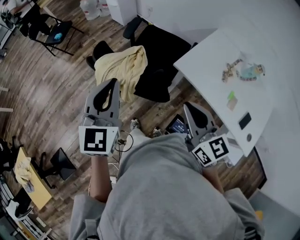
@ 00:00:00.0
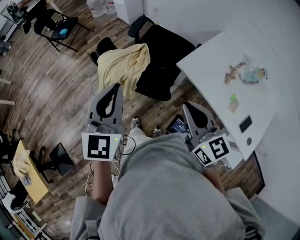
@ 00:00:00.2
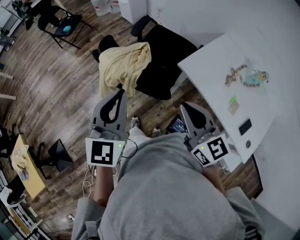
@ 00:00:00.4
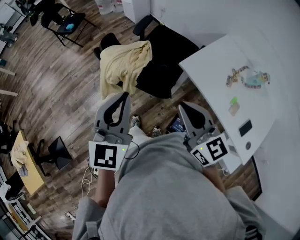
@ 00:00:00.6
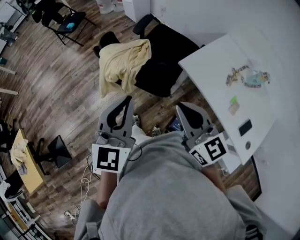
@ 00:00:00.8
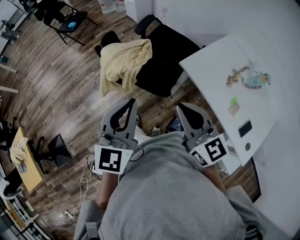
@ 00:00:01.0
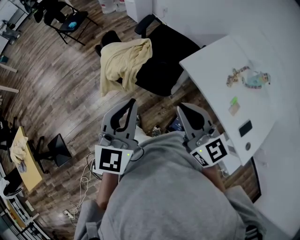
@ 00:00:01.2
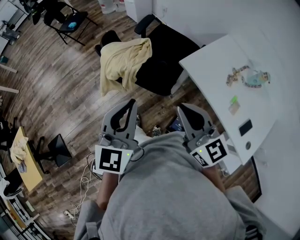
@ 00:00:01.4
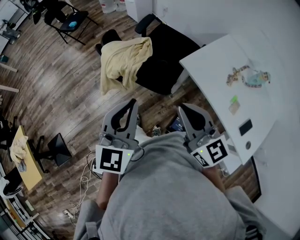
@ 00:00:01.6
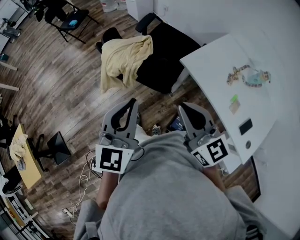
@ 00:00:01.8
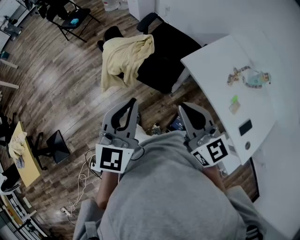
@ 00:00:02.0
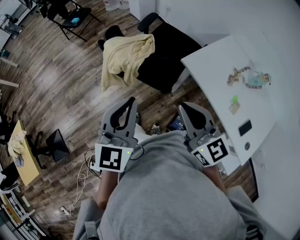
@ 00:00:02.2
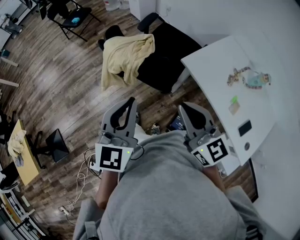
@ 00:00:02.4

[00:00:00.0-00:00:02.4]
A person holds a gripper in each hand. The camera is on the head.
00:00:00.0 to 00:00:01.2: The left gripper moves backward, roughly 10 cm.
00:00:01.2 to 00:00:02.4: The grippers stay close to where they were, moving slightly.

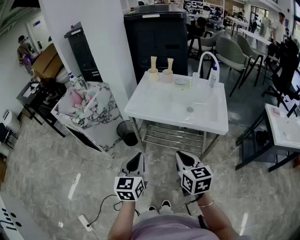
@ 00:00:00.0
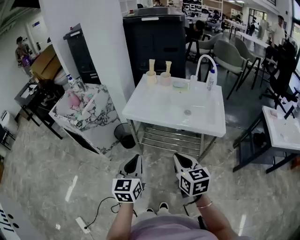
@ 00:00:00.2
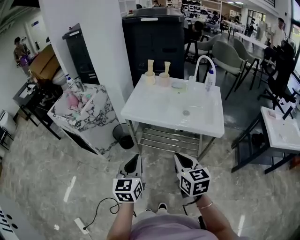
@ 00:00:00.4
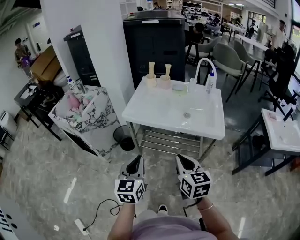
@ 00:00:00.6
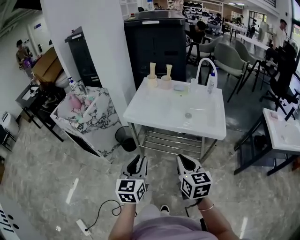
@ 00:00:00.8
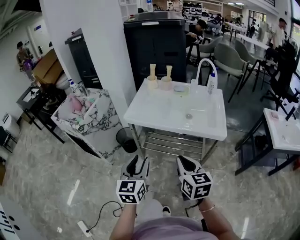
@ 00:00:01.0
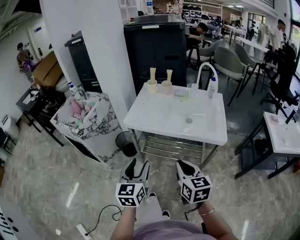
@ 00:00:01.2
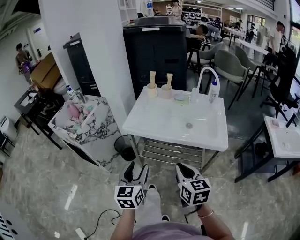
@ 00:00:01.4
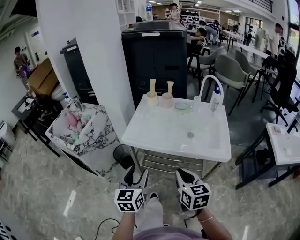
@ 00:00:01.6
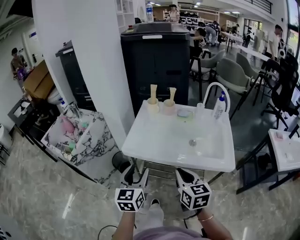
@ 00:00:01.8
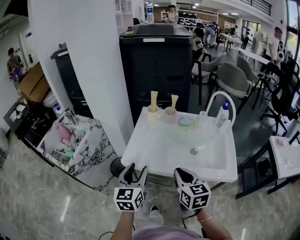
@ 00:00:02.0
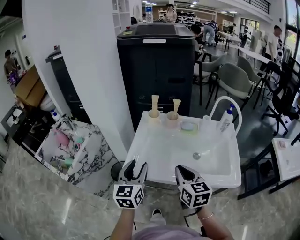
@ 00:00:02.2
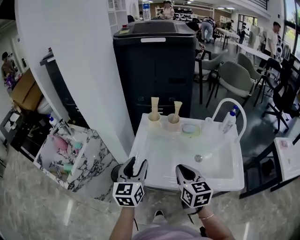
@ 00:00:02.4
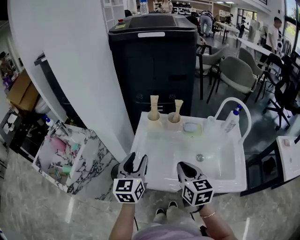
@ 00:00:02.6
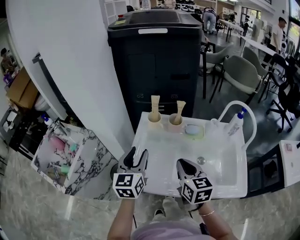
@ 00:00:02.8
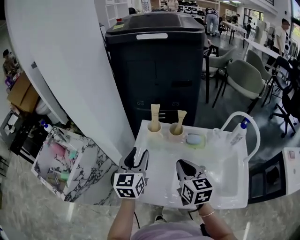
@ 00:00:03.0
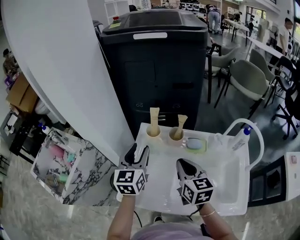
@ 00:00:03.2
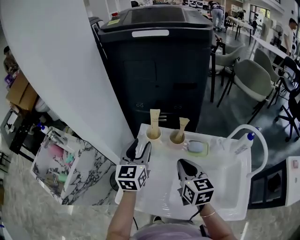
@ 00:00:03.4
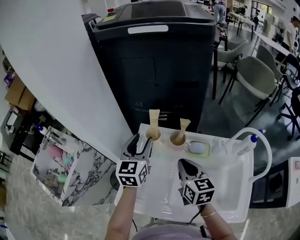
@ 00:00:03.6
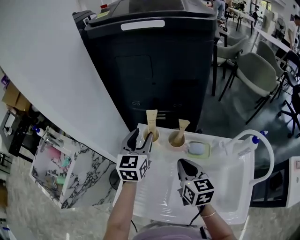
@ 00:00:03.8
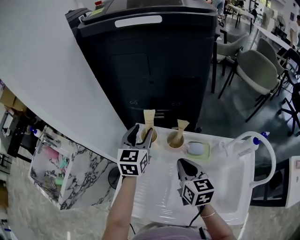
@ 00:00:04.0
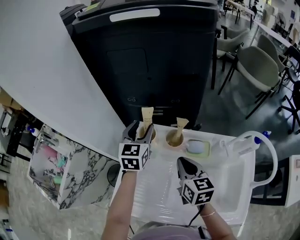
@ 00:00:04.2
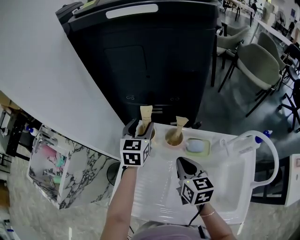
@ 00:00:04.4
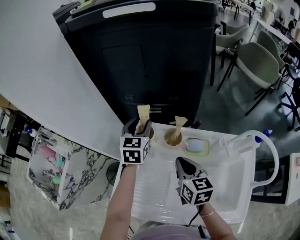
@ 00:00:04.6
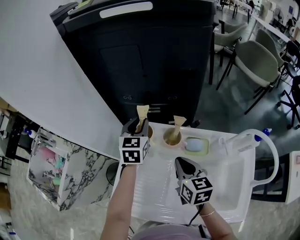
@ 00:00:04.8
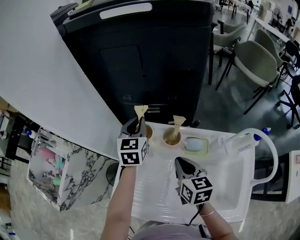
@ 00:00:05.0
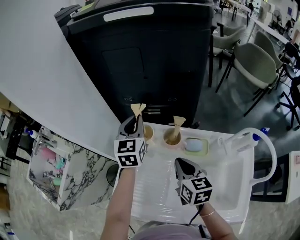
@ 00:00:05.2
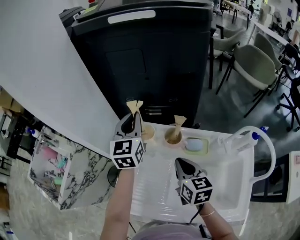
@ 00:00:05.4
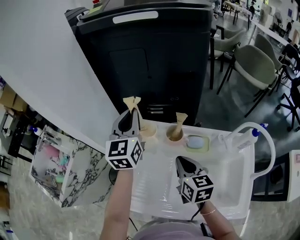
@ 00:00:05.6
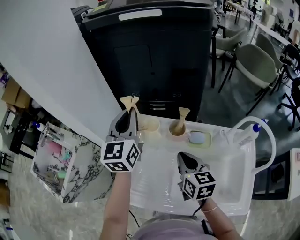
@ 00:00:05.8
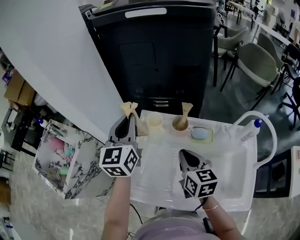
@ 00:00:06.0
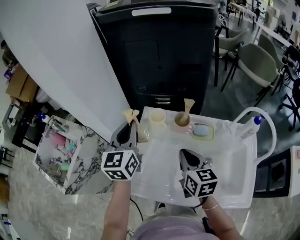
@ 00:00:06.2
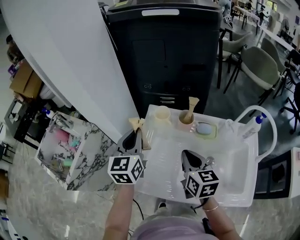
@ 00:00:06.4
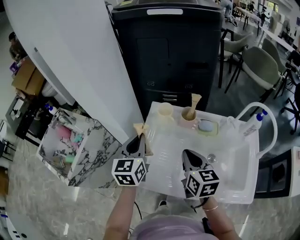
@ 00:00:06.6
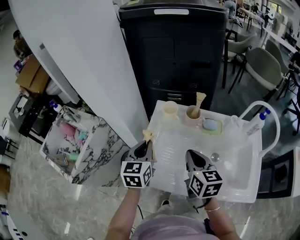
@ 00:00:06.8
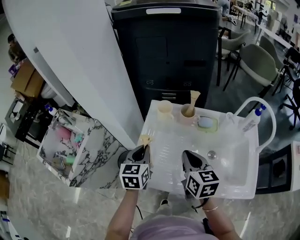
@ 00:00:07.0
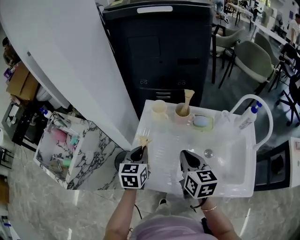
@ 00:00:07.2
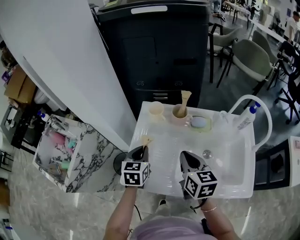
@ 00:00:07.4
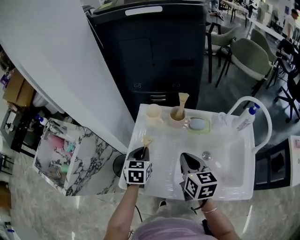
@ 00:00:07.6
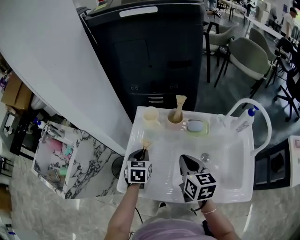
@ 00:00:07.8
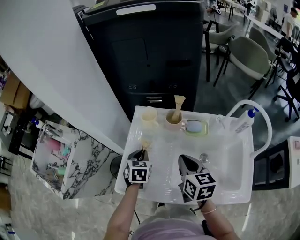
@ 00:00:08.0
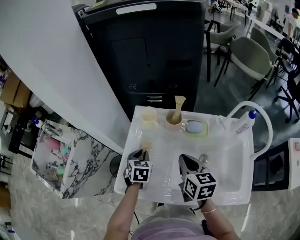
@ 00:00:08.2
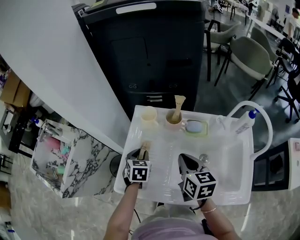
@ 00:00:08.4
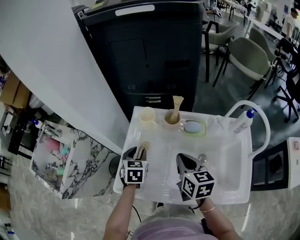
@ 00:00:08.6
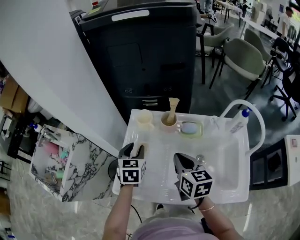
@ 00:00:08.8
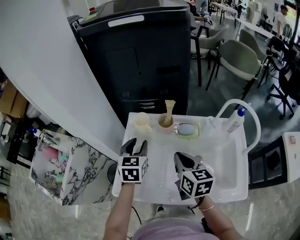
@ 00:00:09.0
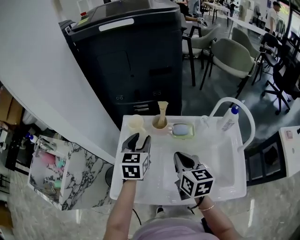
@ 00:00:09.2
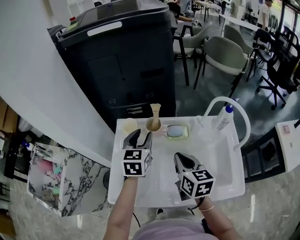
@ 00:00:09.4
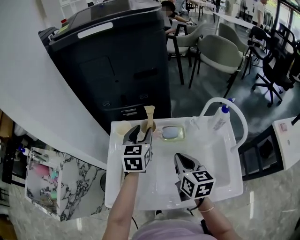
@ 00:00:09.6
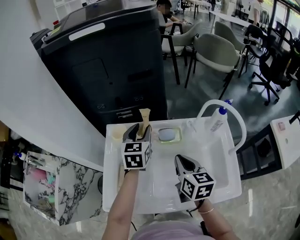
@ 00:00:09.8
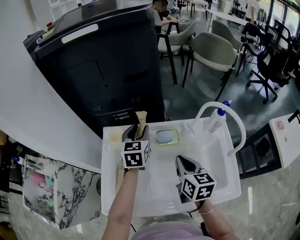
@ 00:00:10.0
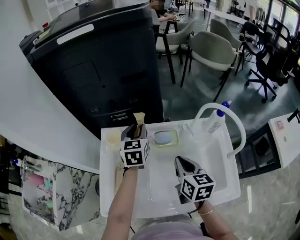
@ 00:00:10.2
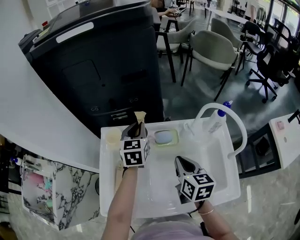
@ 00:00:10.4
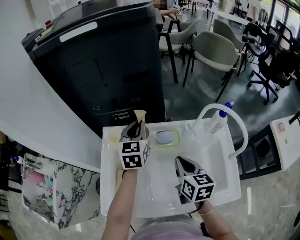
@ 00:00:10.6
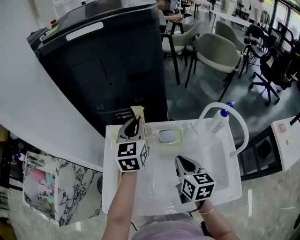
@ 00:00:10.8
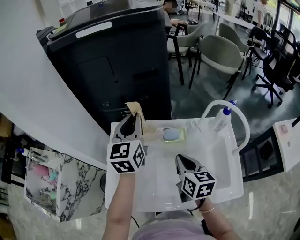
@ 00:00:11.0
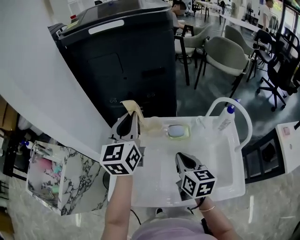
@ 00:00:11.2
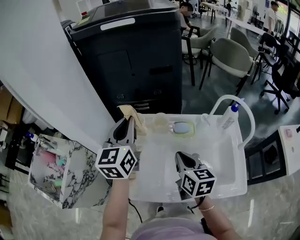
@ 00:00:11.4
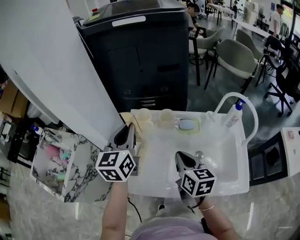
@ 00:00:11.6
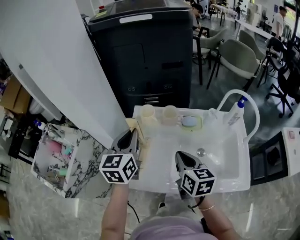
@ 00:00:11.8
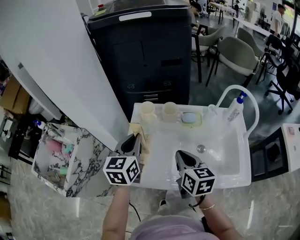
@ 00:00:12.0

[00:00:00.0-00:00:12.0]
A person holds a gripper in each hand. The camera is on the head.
00:00:00.0 to 00:00:01.6: Both grippers travel together forward, roughly 10 cm. The left gripper opens.
00:00:01.6 to 00:00:03.0: Both grippers move forward, about 40 cm.
00:00:03.0 to 00:00:04.4: The left gripper shifts some 20 cm forward; the right gripper travels forward and downward by some 15 cm.
00:00:04.4 to 00:00:06.0: The right gripper changes place by about 5 cm, while the left gripper goes some 20 cm upward, backward and to the left, rotates some 20 degrees, and closes up.
00:00:06.0 to 00:00:07.6: The left gripper is displaced downward and backward by some 25 cm, and tips its fingers downward by approximately 40 degrees. Meanwhile the right gripper travels backward by roughly 5 cm.
00:00:07.6 to 00:00:09.0: The left gripper moves upward, about 10 cm, and opens up.
00:00:09.0 to 00:00:10.4: The left gripper shifts roughly 20 cm forward and to the right, and closes up. The right gripper is displaced to the right by approximately 10 cm.
00:00:10.4 to 00:00:12.0: The left gripper shifts approximately 25 cm backward and to the left; the right gripper moves to the left and backward, approximately 15 cm.

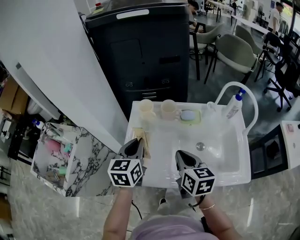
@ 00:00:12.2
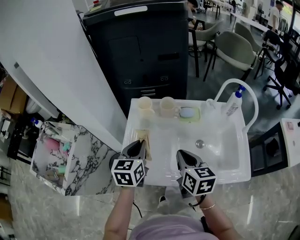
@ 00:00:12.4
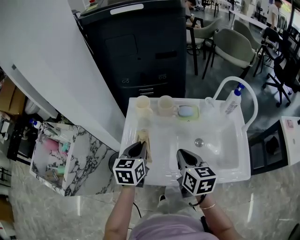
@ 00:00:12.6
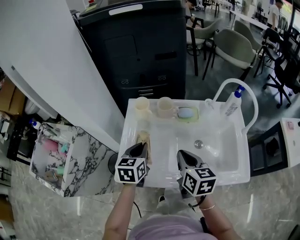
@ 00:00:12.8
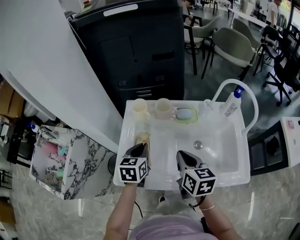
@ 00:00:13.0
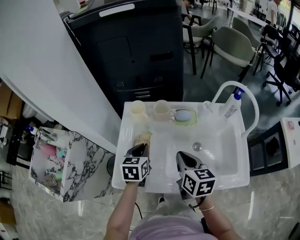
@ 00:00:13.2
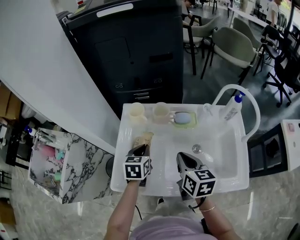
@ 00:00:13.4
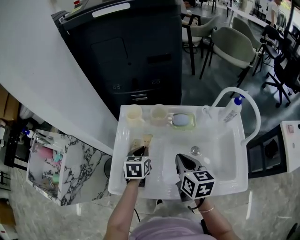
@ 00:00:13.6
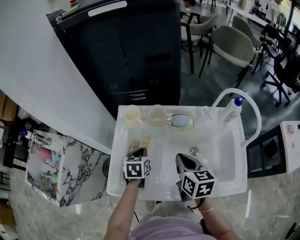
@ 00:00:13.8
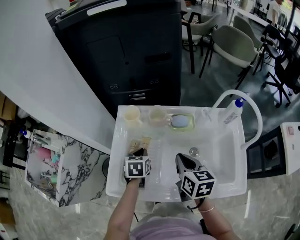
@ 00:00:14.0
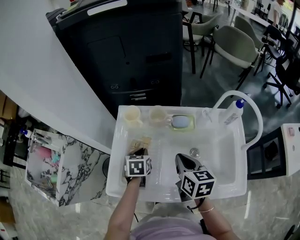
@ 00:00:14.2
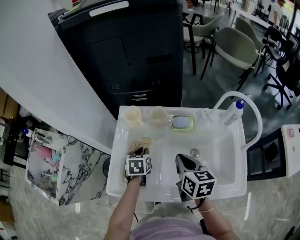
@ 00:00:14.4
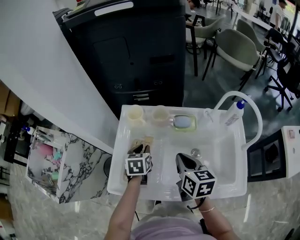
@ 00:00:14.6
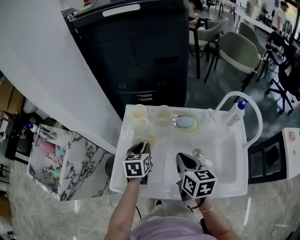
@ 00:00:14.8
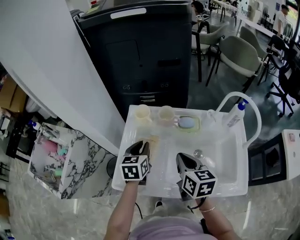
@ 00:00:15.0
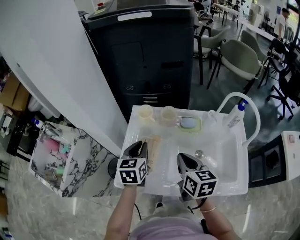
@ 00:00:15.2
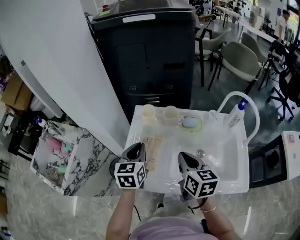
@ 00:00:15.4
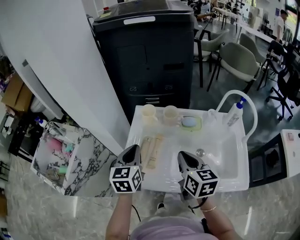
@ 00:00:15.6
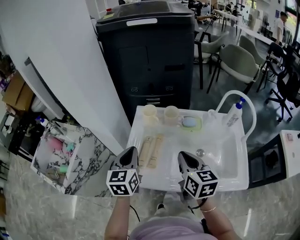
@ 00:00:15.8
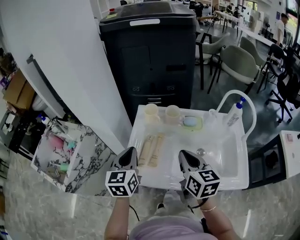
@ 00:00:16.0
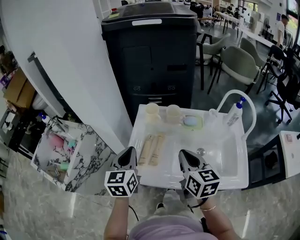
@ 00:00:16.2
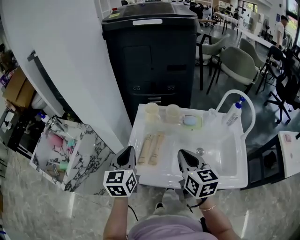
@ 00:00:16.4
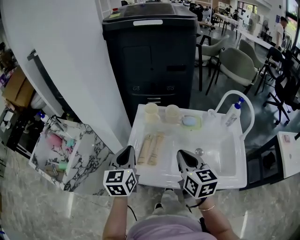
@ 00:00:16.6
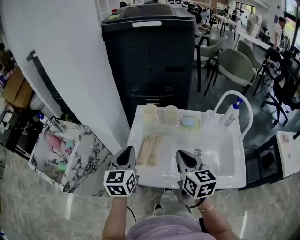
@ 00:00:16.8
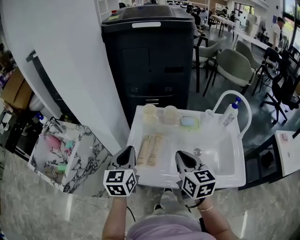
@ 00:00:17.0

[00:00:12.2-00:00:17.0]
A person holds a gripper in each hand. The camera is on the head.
00:00:12.2 to 00:00:13.8: The left gripper heads downward, covering some 15 cm, and rotates approximately 30 degrees; the right gripper heads forward and to the right, covering approximately 10 cm.
00:00:13.8 to 00:00:15.4: The left gripper shifts about 15 cm upward and to the left, and swivels roughly 20 degrees, while the right gripper goes roughly 5 cm upward.
00:00:15.4 to 00:00:17.0: The right gripper shifts by approximately 5 cm. The left gripper travels backward and to the left by roughly 10 cm.

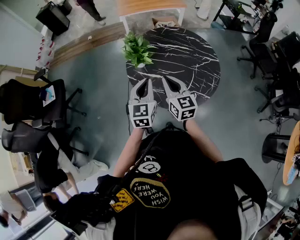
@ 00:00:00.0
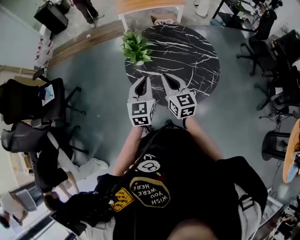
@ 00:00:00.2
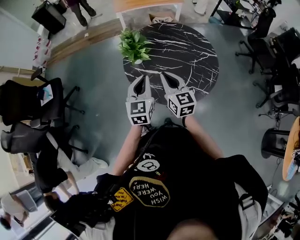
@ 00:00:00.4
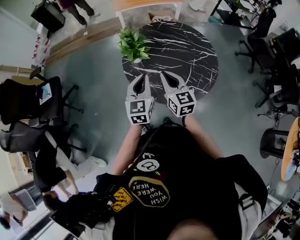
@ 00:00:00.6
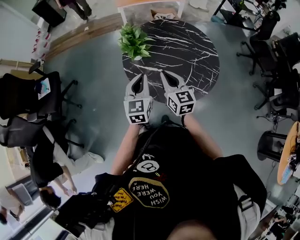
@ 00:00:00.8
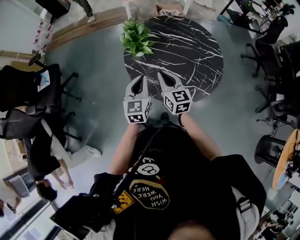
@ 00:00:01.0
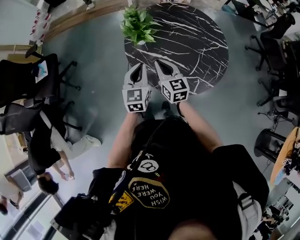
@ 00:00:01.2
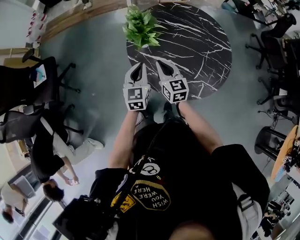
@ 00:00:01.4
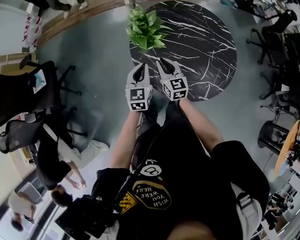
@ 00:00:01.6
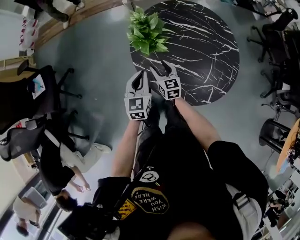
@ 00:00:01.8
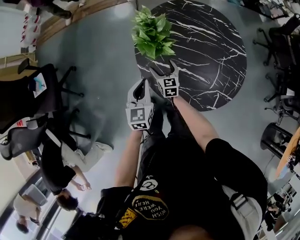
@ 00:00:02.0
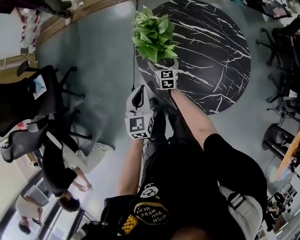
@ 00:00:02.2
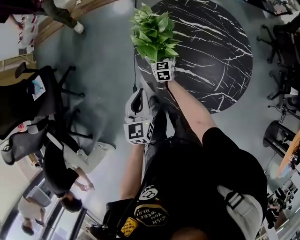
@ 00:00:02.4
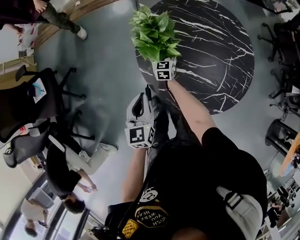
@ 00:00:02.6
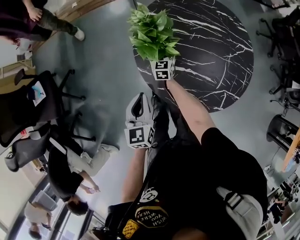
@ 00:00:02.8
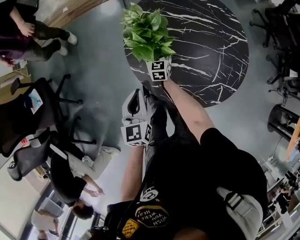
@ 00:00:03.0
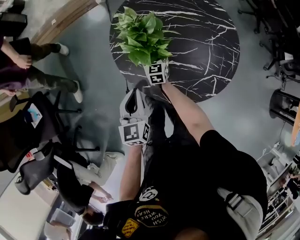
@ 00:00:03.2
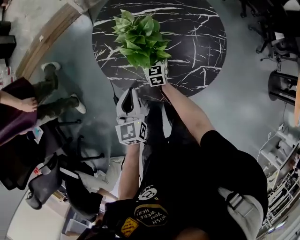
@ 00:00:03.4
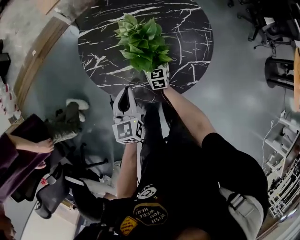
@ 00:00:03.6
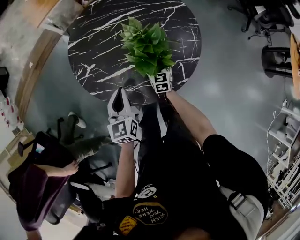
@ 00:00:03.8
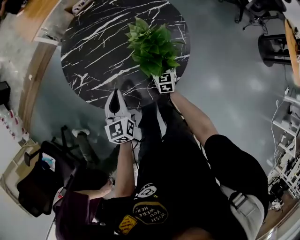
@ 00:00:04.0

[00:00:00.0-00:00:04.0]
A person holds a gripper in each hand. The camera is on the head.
00:00:00.0 to 00:00:01.4: Both grippers move downward, forward and to the left, about 15 cm.
00:00:01.4 to 00:00:02.6: The right gripper moves downward and forward, about 35 cm, turns by approximately 20 degrees, and opens its fingers; the left gripper heads to the left and downward, covering roughly 10 cm.
00:00:02.6 to 00:00:04.0: The left gripper changes place by some 20 cm, and rotates some 30 degrees; the right gripper changes place by roughly 40 cm, and turns by some 30 degrees.
